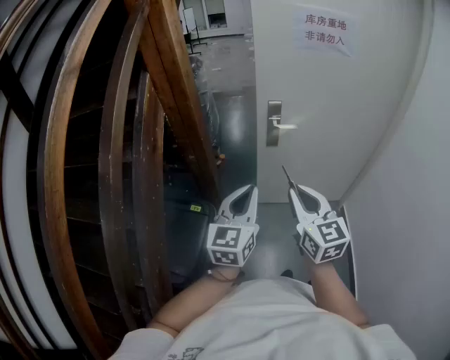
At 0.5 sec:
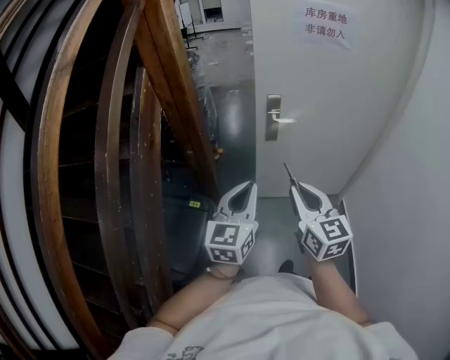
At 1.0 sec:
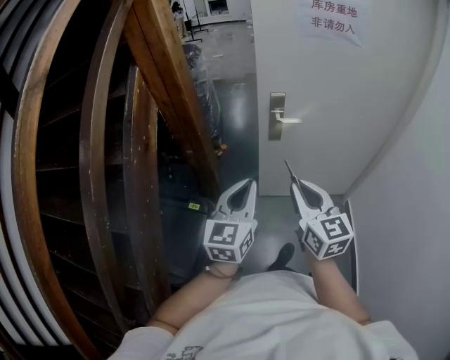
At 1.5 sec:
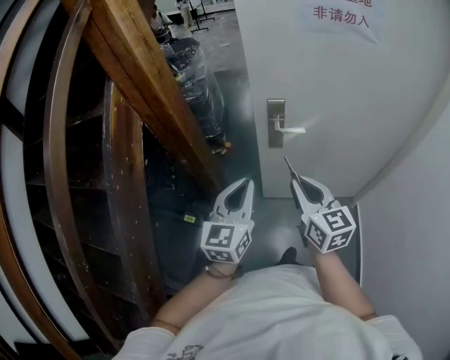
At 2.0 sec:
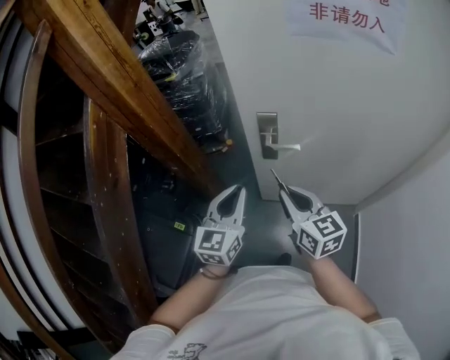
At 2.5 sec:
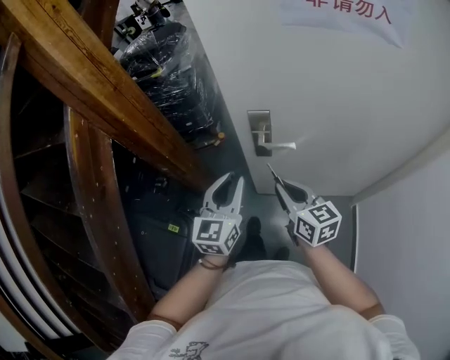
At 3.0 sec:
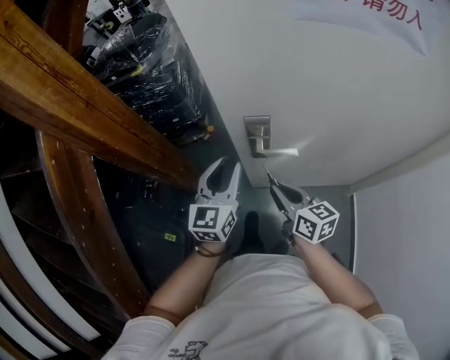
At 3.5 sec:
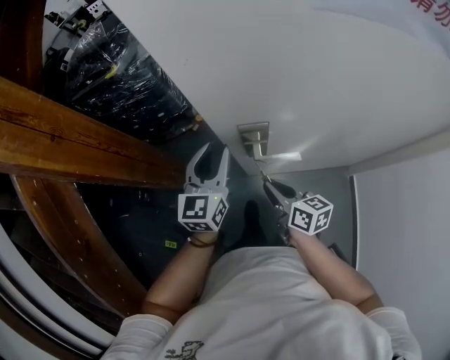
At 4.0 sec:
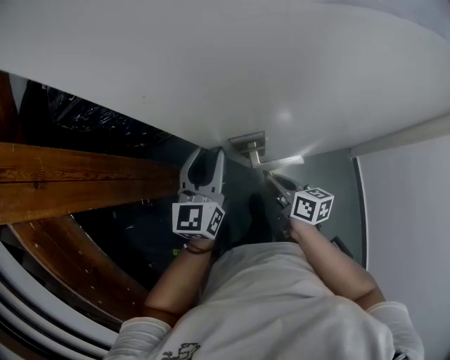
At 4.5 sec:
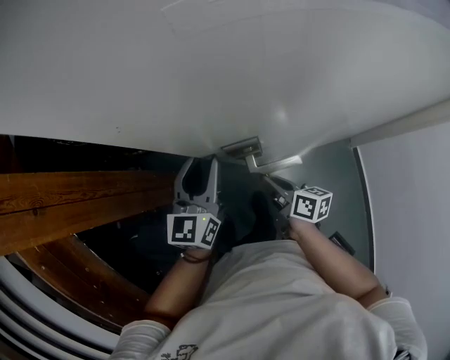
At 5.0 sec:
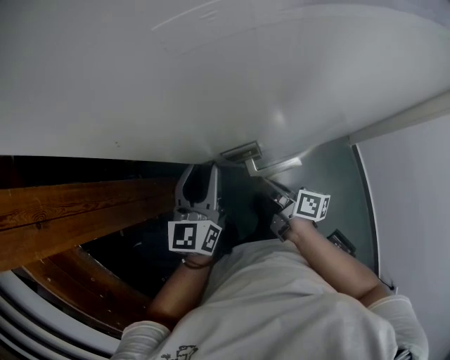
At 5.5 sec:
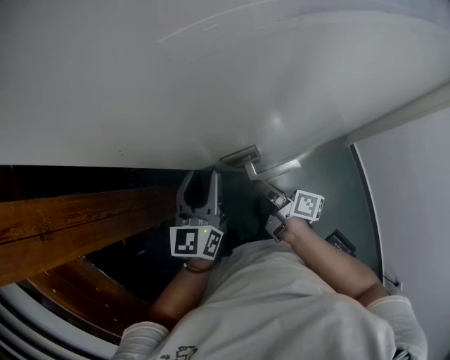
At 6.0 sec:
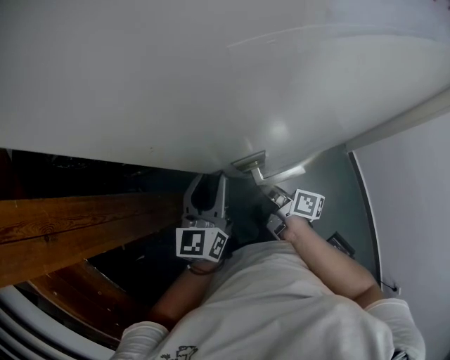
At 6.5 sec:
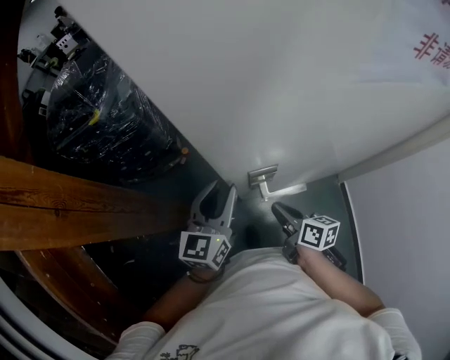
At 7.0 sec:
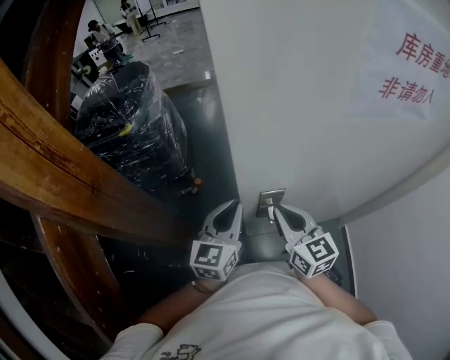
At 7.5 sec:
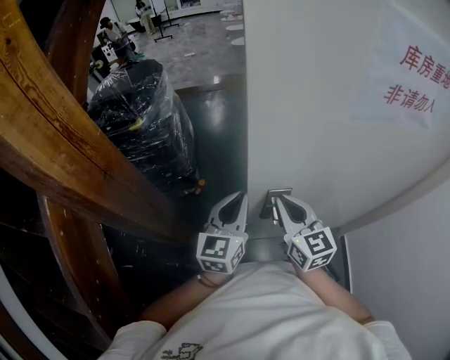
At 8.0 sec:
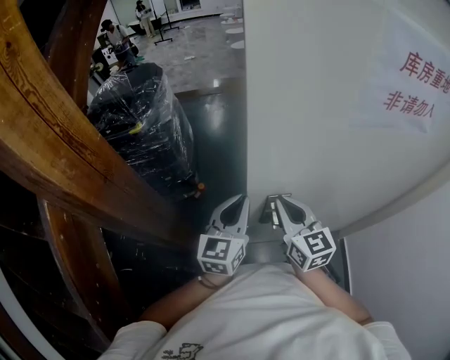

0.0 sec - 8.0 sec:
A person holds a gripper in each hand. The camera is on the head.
0.0 sec - 2.0 sec: Both grippers travel together forward, some 30 cm. The right gripper changes its angle by about 20 degrees.
2.0 sec - 4.0 sec: The left gripper is displaced forward by approximately 30 cm, and opens; the right gripper goes approximately 30 cm downward and forward, and rotates around the line of its fingers by approximately 40 degrees, clockwise from behind.
4.0 sec - 6.0 sec: The right gripper changes its angle by approximately 30 degrees.
6.0 sec - 8.0 sec: The left gripper moves upward, approximately 10 cm, and closes its fingers, while the right gripper shifts about 25 cm upward, and rolls counterclockwise, seen from behind, by approximately 70 degrees.

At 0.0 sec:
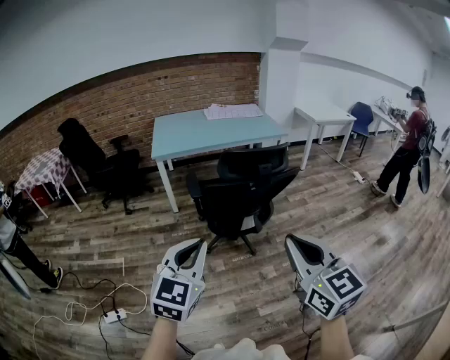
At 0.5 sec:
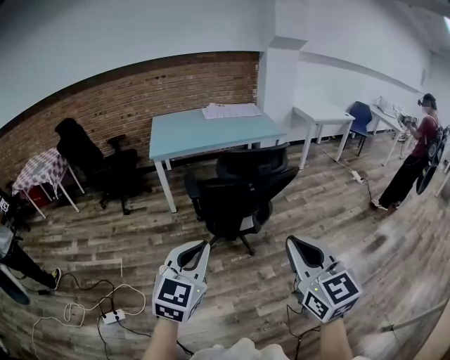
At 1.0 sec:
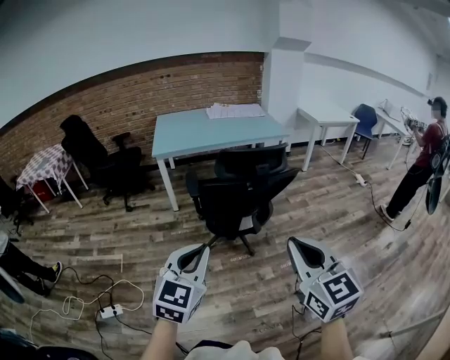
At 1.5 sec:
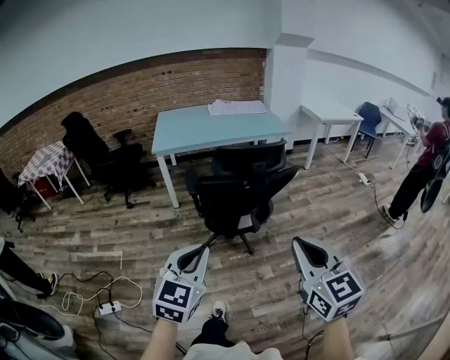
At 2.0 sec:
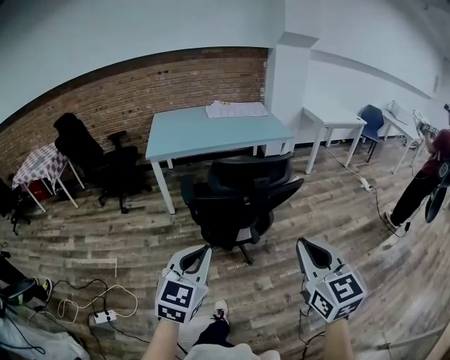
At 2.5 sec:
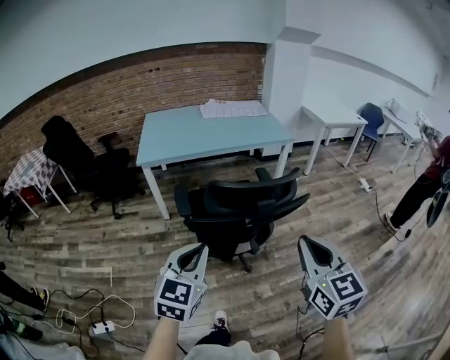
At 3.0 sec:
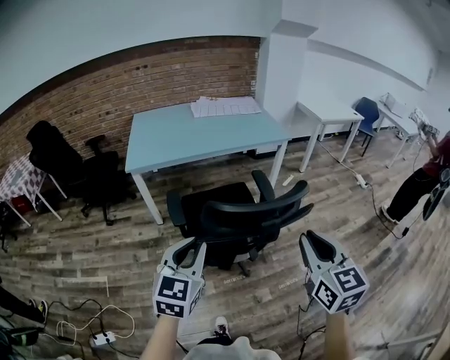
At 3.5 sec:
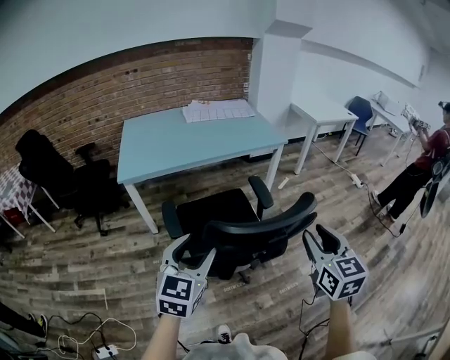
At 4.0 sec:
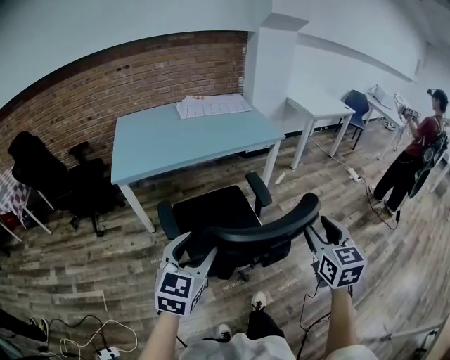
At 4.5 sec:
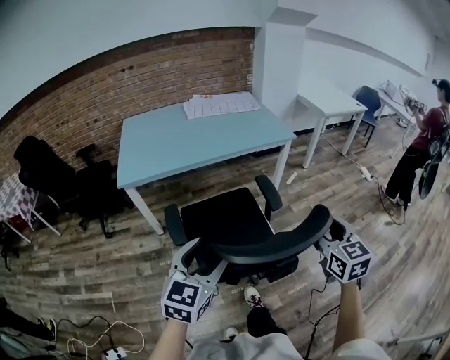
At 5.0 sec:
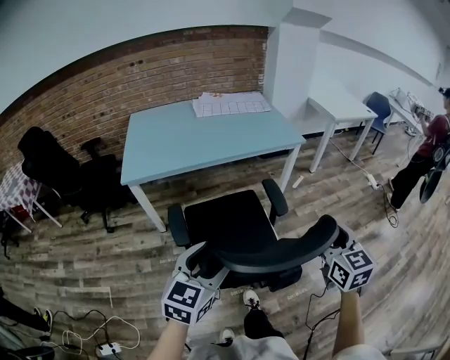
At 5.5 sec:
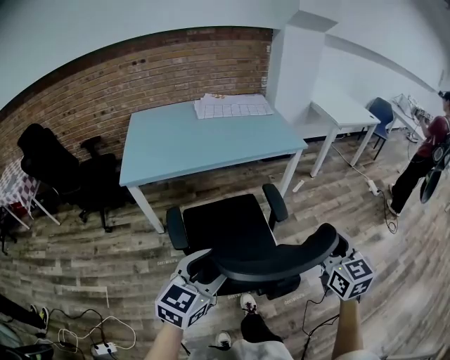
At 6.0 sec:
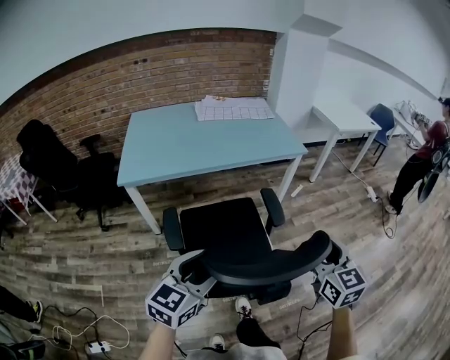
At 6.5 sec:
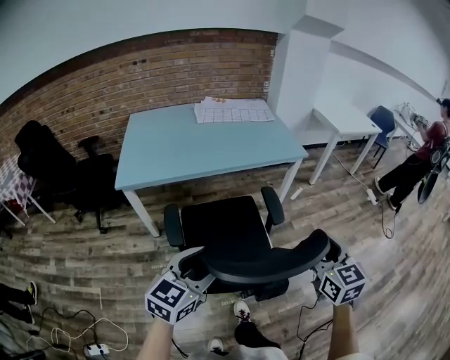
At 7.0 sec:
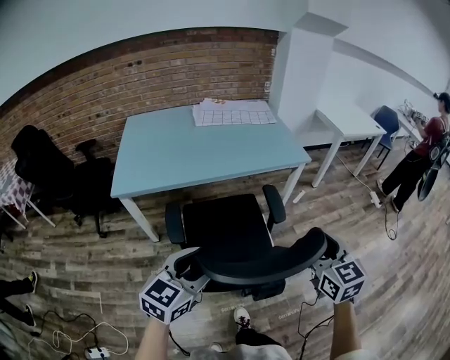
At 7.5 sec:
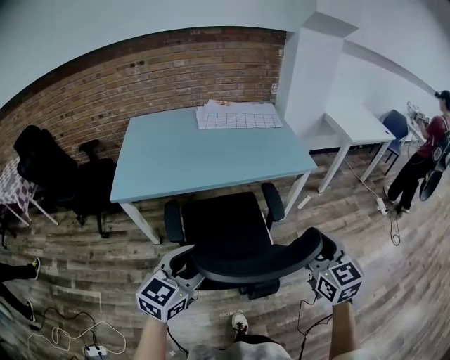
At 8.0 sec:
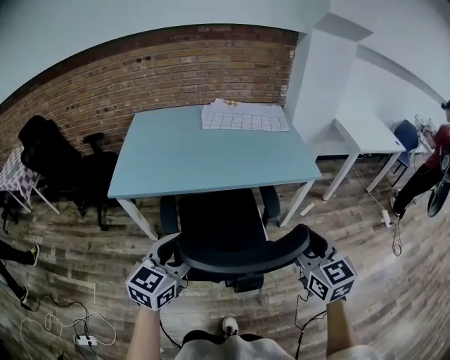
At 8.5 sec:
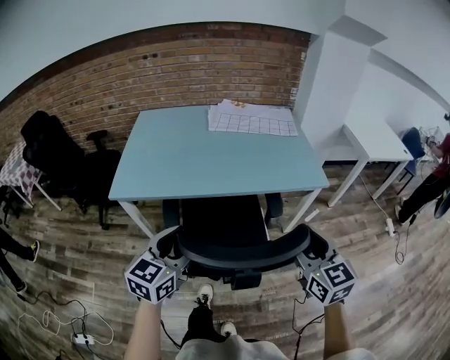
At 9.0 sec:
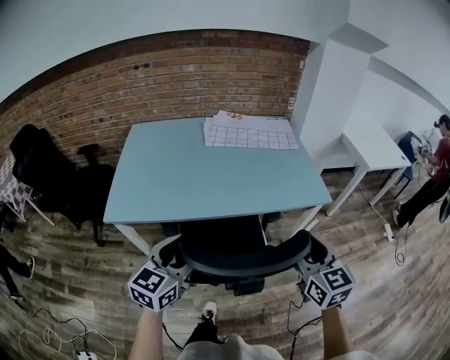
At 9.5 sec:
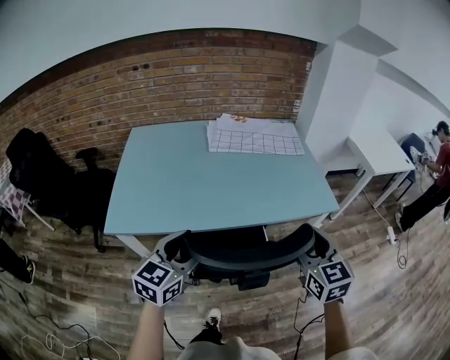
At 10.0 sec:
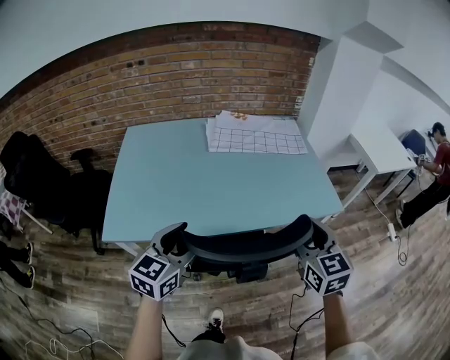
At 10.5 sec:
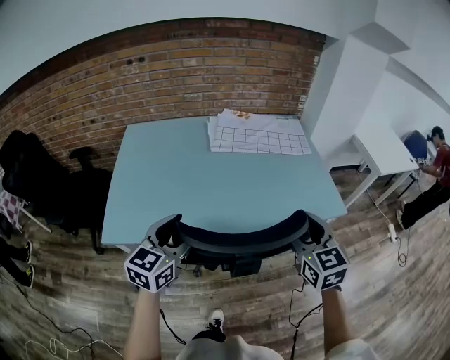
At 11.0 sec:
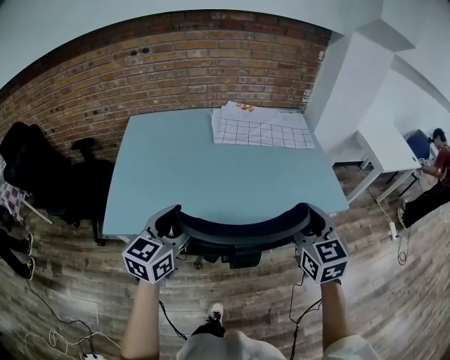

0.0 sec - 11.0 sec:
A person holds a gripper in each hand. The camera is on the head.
0.0 sec - 2.0 sec: Both grippers move forward, to the right and downward, roughly 15 cm.
2.0 sec - 3.5 sec: Both grippers move forward, about 25 cm. The left gripper opens its fingers. The right gripper opens its fingers.
3.5 sec - 5.5 sec: The right gripper shifts some 15 cm forward. Meanwhile the left gripper travels forward by approximately 10 cm.
5.5 sec - 7.5 sec: The grippers both shift forward by roughly 15 cm.
7.5 sec - 9.0 sec: The grippers both shift forward by roughly 20 cm.
9.0 sec - 11.0 sec: Both grippers travel together forward and to the left, some 20 cm.

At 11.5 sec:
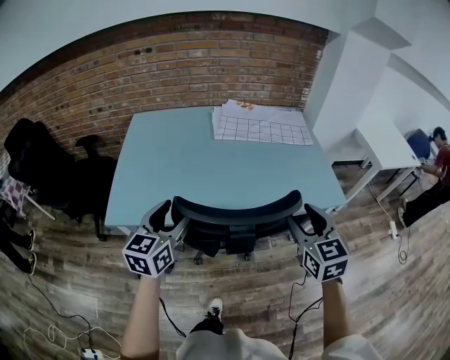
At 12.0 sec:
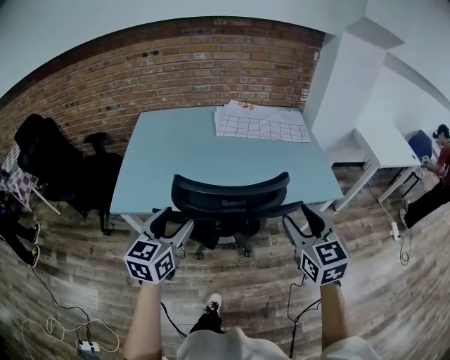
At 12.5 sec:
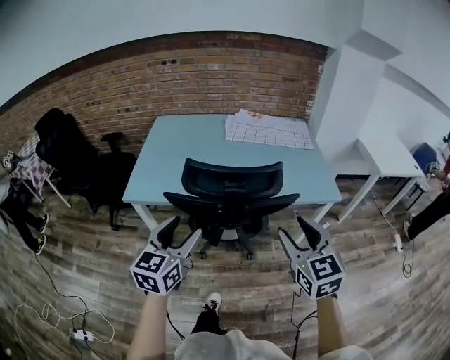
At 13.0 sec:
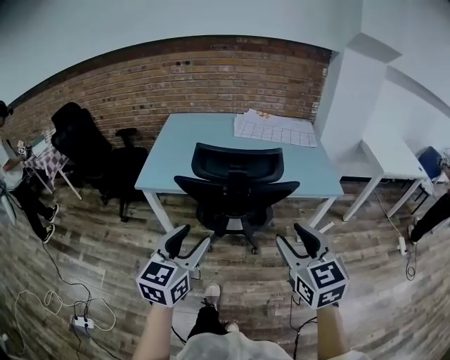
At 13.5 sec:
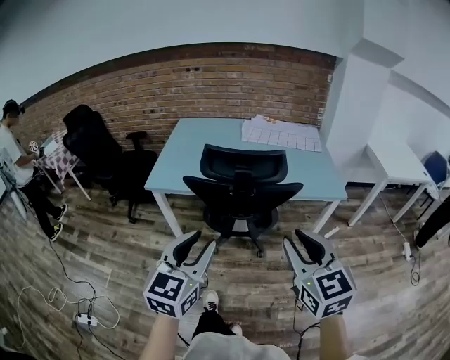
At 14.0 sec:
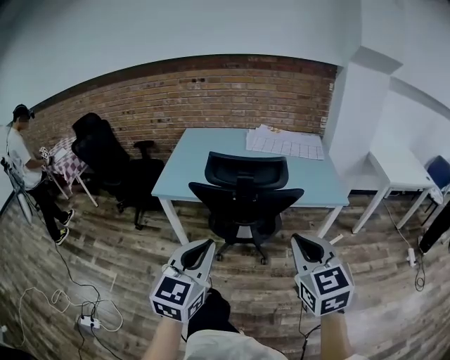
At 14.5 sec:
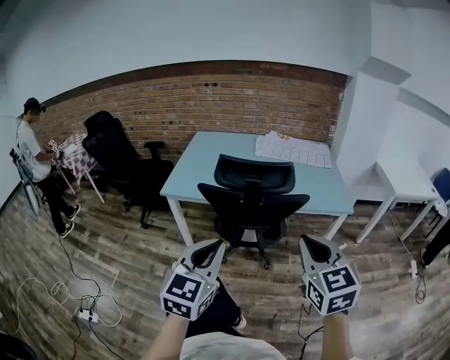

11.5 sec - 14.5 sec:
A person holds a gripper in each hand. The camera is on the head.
11.5 sec - 13.0 sec: The grippers both shift backward by approximately 30 cm.
13.0 sec - 14.5 sec: The left gripper shifts roughly 10 cm backward and upward, and closes; the right gripper shifts roughly 5 cm backward, and closes up.

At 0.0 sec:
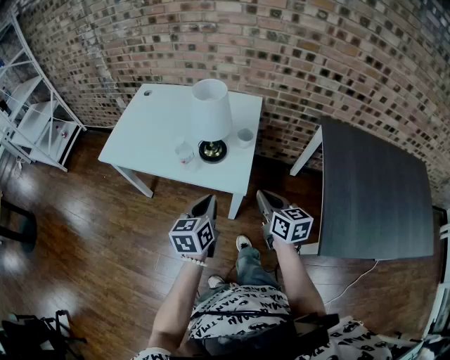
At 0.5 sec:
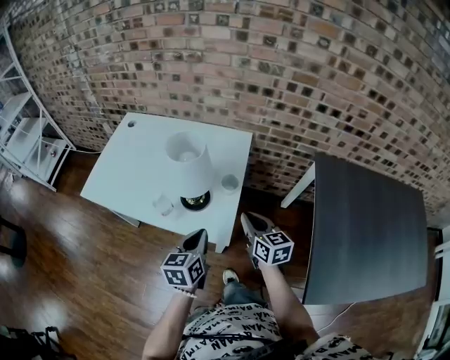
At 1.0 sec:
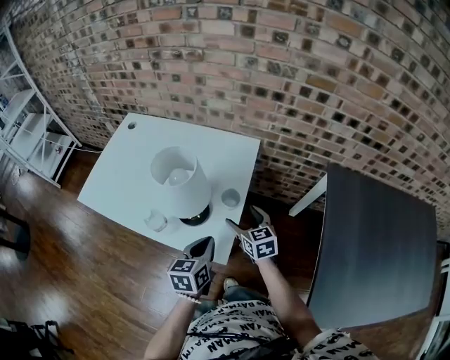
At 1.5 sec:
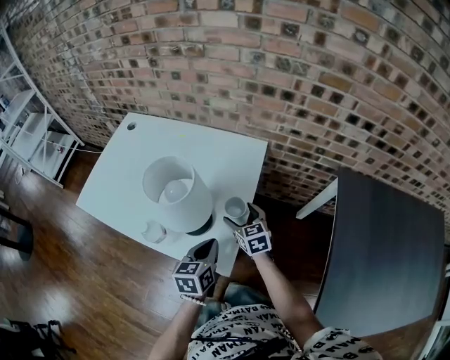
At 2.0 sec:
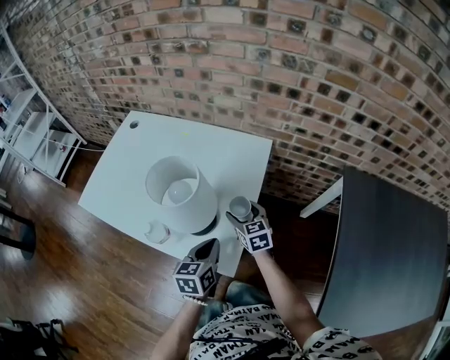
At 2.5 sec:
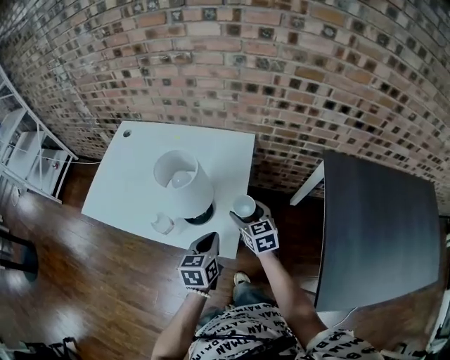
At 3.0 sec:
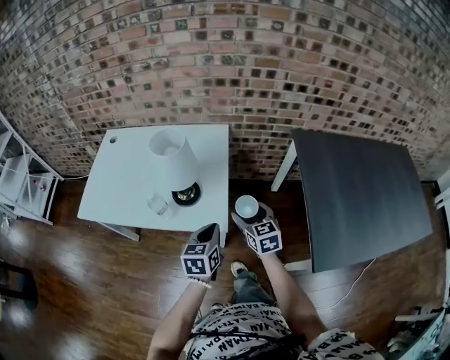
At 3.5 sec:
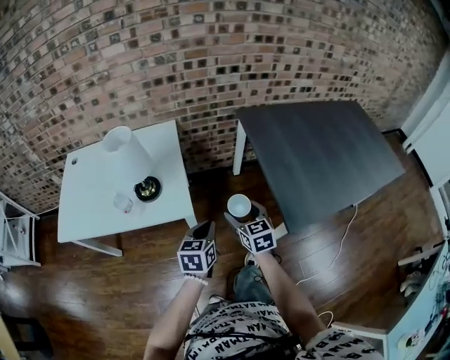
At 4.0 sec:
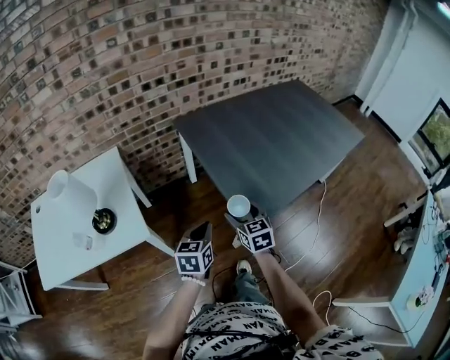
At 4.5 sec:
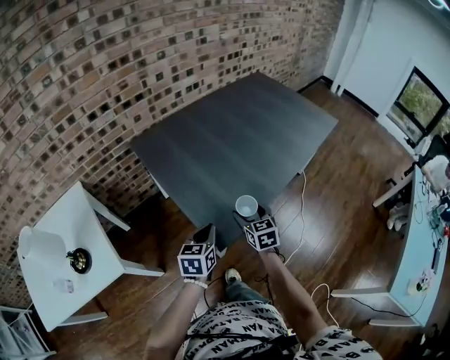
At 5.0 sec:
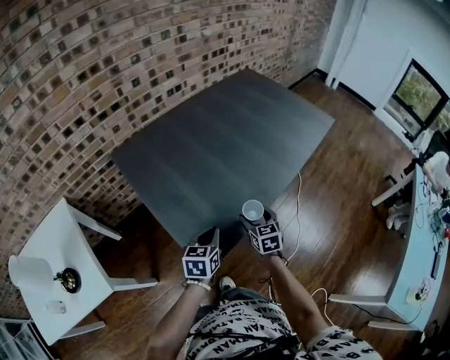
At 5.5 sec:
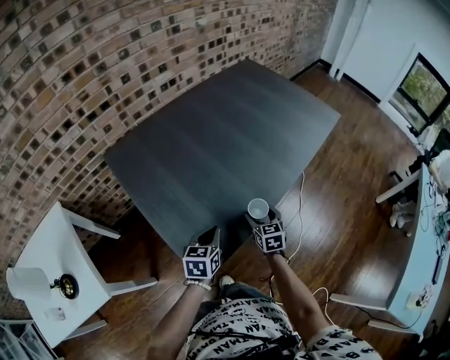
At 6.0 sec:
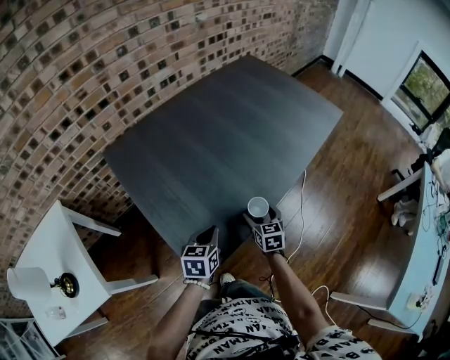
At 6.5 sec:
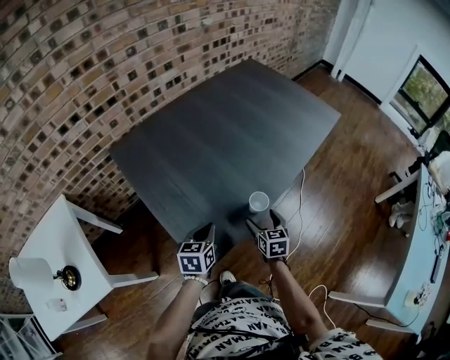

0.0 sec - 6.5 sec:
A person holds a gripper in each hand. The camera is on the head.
0.0 sec - 2.0 sec: The right gripper heads forward and downward, covering some 35 cm, swivels some 20 degrees, and opens. The left gripper shifts about 20 cm forward, downward and to the right.
2.0 sec - 4.5 sec: The two grippers travel together, about 60 cm. The right gripper changes its angle by some 60 degrees. The left gripper changes its angle by some 60 degrees.
4.5 sec - 6.5 sec: The right gripper goes about 15 cm to the right, downward and forward, while the left gripper travels forward, to the right and downward by approximately 15 cm.
